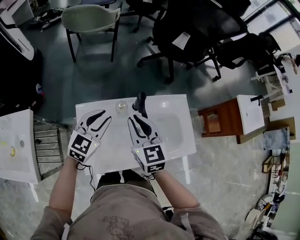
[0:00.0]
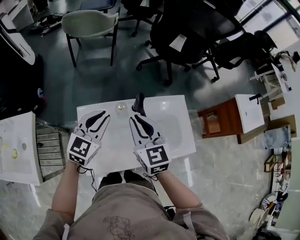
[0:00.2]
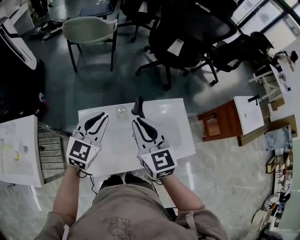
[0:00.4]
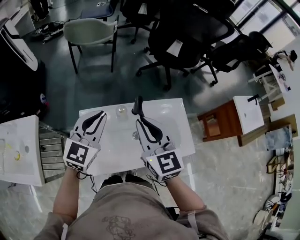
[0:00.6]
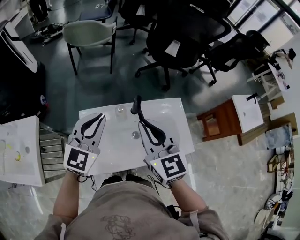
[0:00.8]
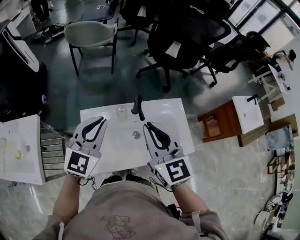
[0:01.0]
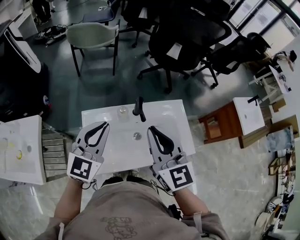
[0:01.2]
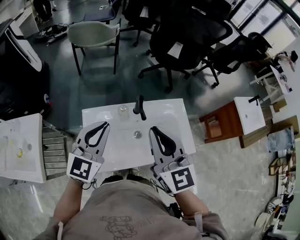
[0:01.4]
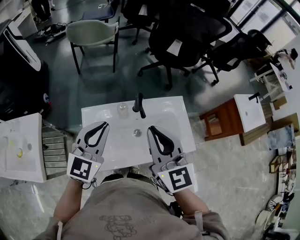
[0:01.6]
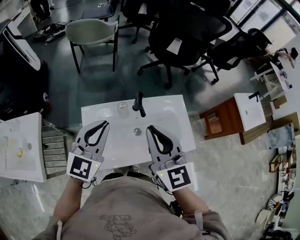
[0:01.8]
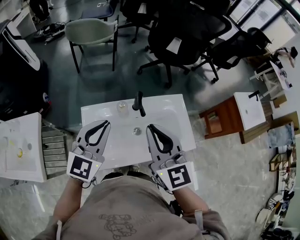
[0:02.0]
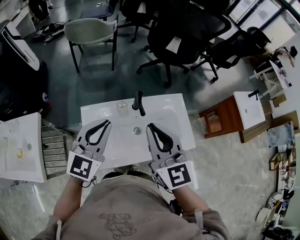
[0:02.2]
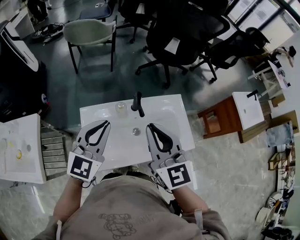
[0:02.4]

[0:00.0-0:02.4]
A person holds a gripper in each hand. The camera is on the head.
0:00.0 to 0:01.2: The right gripper heads upward, backward and to the right, covering approximately 15 cm; the left gripper travels upward and backward by about 15 cm.
0:01.2 to 0:02.4: The grippers stay close to where they were, moving slightly.

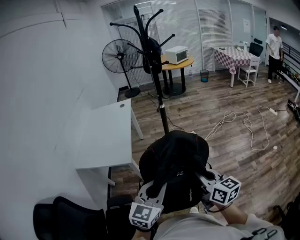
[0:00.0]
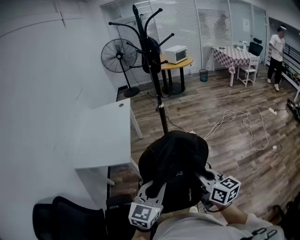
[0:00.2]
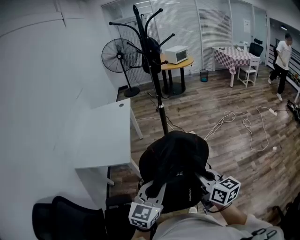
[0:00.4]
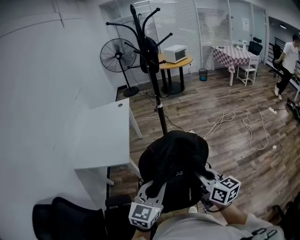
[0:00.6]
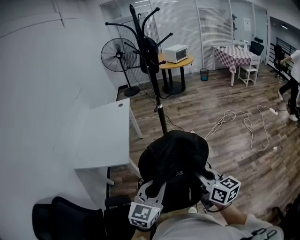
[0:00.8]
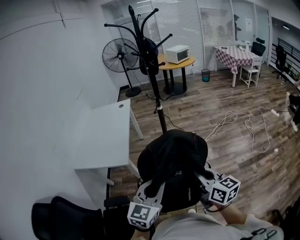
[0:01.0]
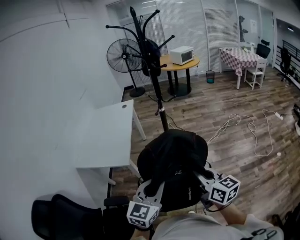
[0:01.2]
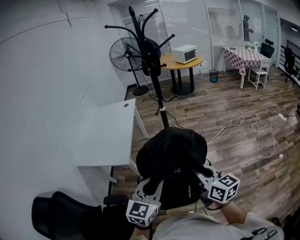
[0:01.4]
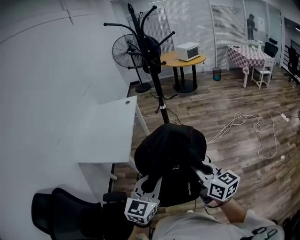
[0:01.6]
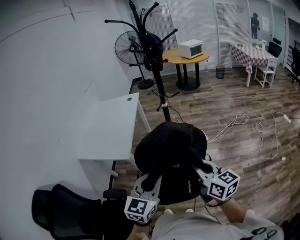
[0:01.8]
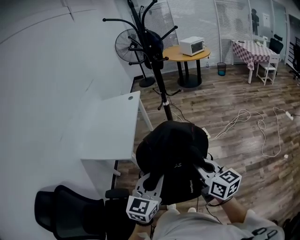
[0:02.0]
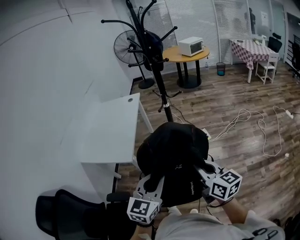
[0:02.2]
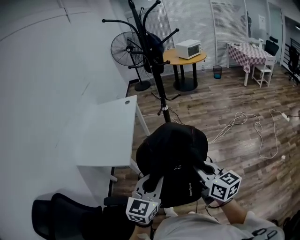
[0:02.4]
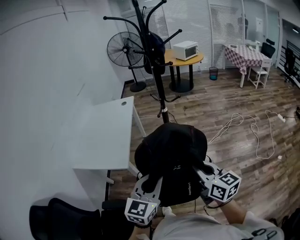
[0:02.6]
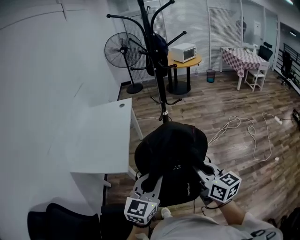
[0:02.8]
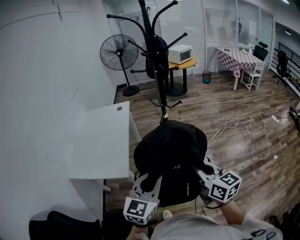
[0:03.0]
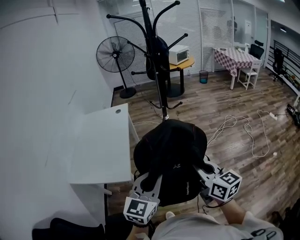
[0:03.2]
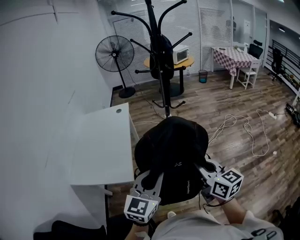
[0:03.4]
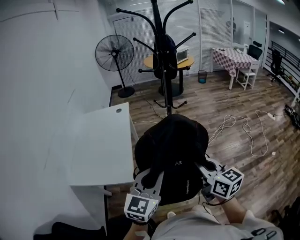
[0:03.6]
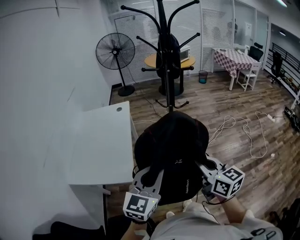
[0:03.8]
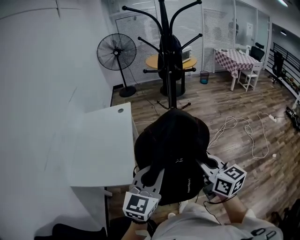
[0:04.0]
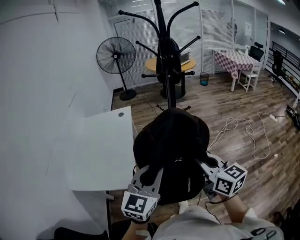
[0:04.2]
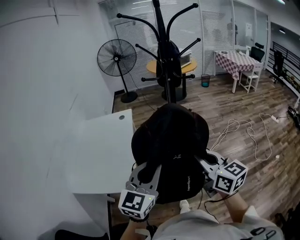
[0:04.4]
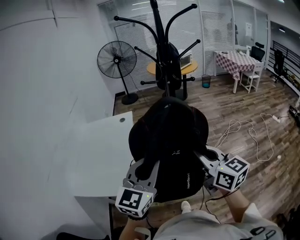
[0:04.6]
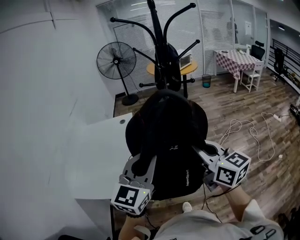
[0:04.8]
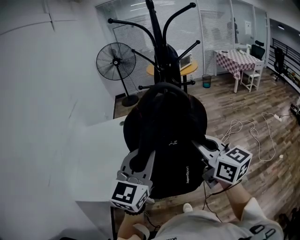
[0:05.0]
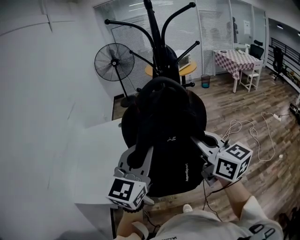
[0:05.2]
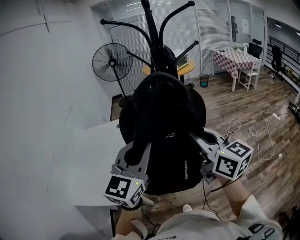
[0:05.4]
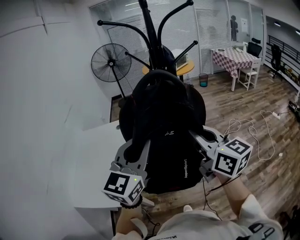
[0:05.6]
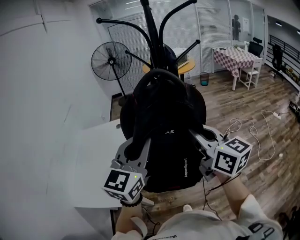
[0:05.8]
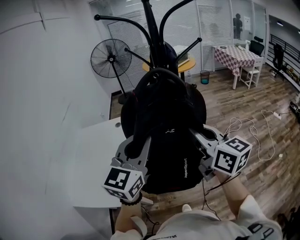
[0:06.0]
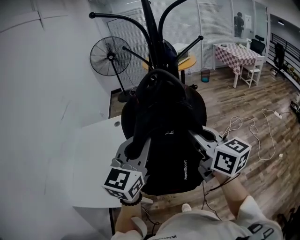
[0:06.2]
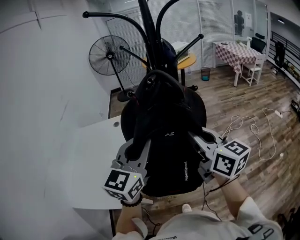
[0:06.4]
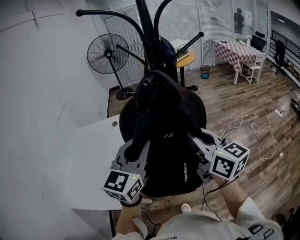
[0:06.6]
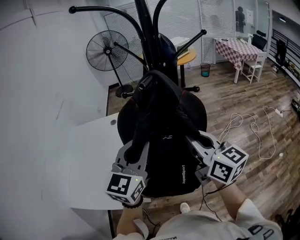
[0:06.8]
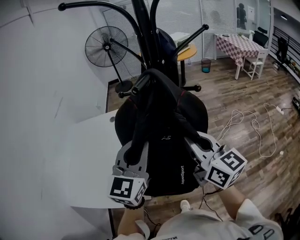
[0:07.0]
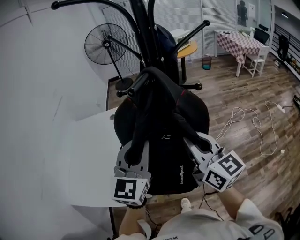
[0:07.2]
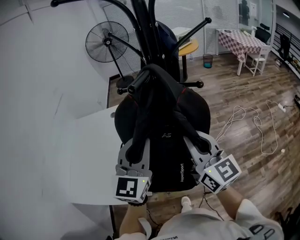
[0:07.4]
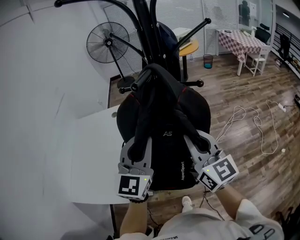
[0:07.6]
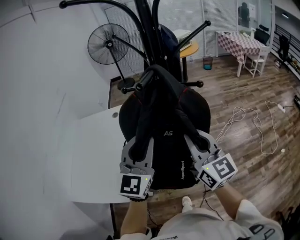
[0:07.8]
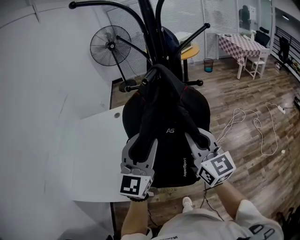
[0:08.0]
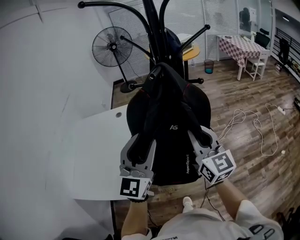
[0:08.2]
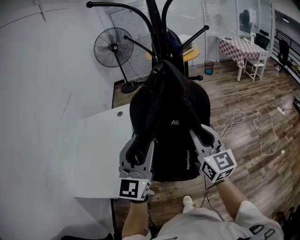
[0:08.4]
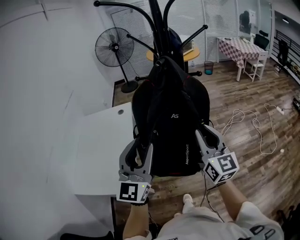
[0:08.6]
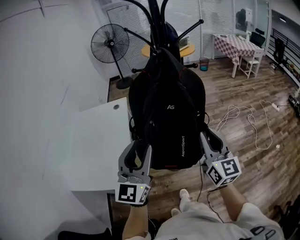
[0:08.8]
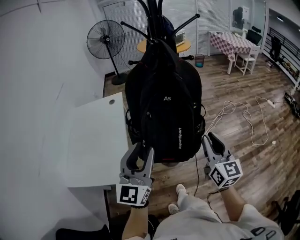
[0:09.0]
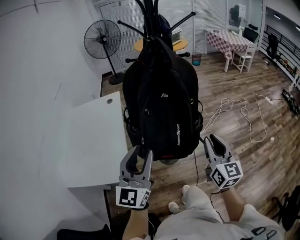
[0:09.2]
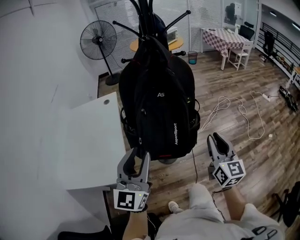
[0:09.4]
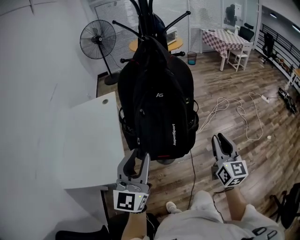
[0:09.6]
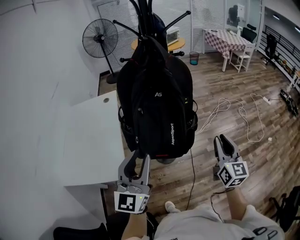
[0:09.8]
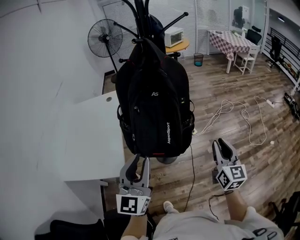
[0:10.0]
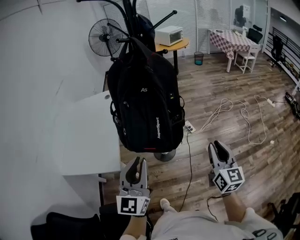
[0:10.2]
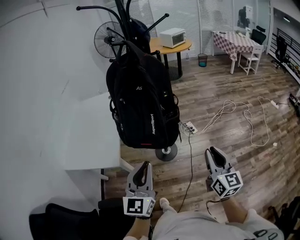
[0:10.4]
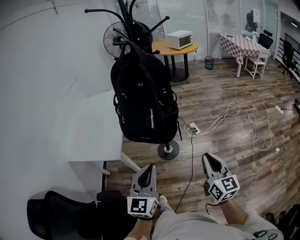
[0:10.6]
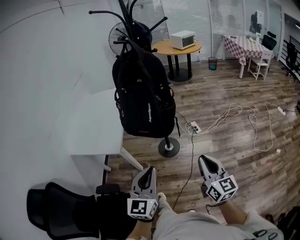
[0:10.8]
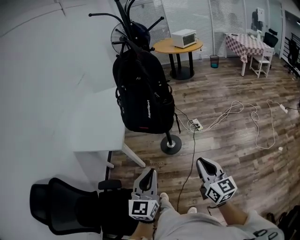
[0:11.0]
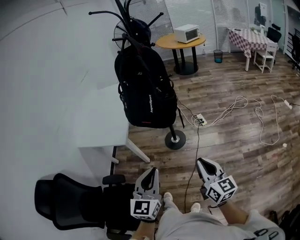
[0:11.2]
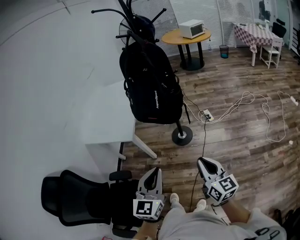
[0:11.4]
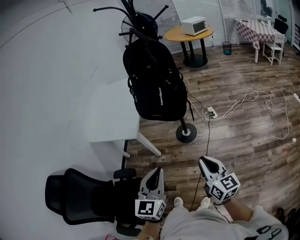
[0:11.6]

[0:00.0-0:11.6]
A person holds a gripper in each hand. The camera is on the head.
0:00.0 to 0:01.4: The left gripper travels to the right and forward by approximately 10 cm, while the right gripper goes some 10 cm forward and to the right.
0:01.4 to 0:02.8: Both grippers move forward, some 10 cm.
0:02.8 to 0:04.4: Both grippers move forward, to the left and upward, about 15 cm.
0:04.4 to 0:05.8: The two grippers go roughly 20 cm forward and upward.
0:05.8 to 0:07.2: The grippers both shift forward and downward by roughly 10 cm.
0:07.2 to 0:08.8: Both grippers travel together backward, about 15 cm. The left gripper opens its fingers. The right gripper changes its angle by some 20 degrees.
0:08.8 to 0:10.2: The right gripper moves to the right, downward and backward, roughly 20 cm. The left gripper moves backward, to the right and downward, about 15 cm, and closes.
0:10.2 to 0:11.6: Both grippers travel together backward, approximately 25 cm. The right gripper rotates about 30 degrees.

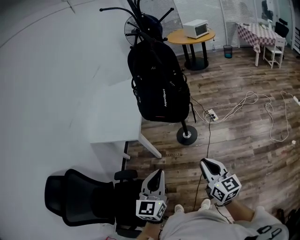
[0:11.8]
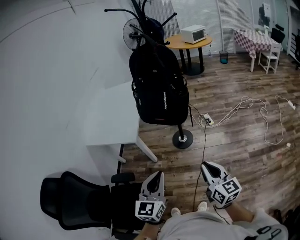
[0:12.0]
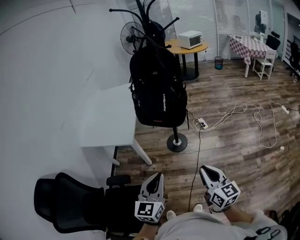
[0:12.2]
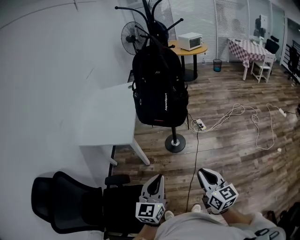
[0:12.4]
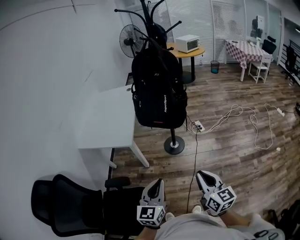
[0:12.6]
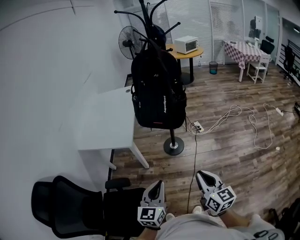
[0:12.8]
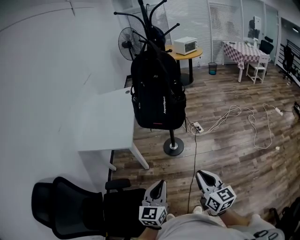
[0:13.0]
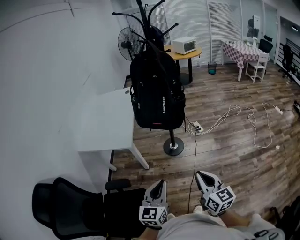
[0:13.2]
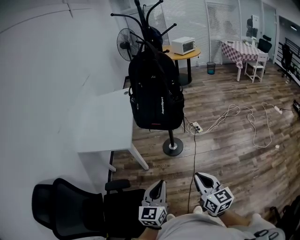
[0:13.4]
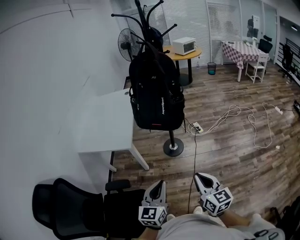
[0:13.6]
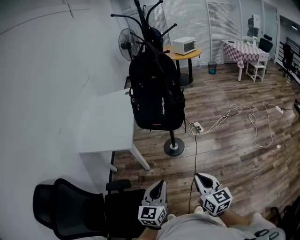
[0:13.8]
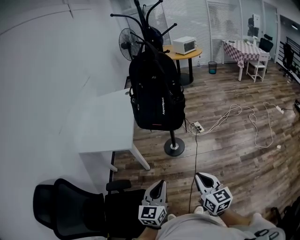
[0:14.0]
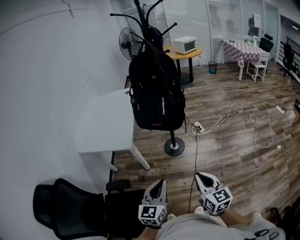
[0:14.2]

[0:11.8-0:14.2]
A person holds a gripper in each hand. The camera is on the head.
0:11.8 to 0:13.0: The right gripper travels to the left and backward by some 10 cm, while the left gripper heads to the left and downward, covering approximately 10 cm.
0:13.0 to 0:14.2: There are only small adjustments of the grippers.

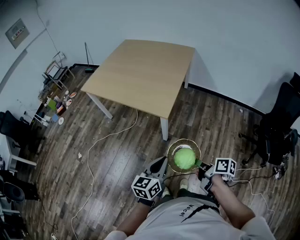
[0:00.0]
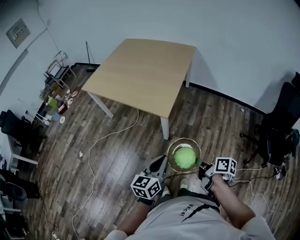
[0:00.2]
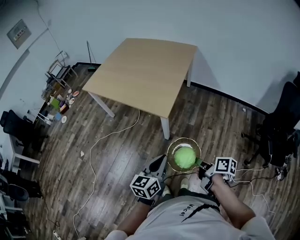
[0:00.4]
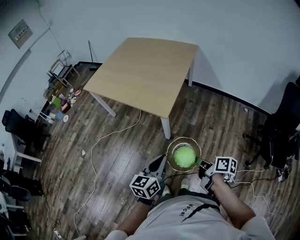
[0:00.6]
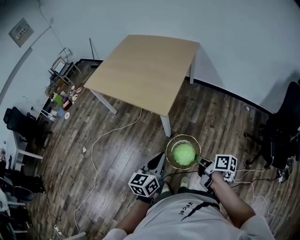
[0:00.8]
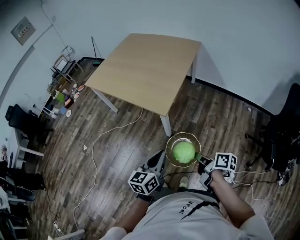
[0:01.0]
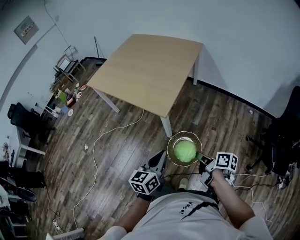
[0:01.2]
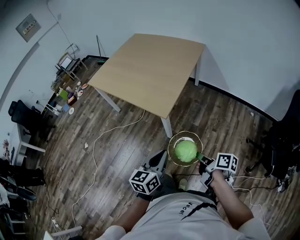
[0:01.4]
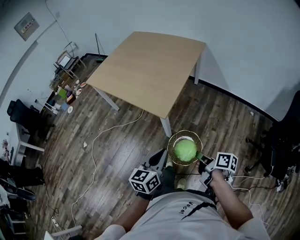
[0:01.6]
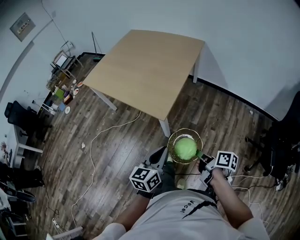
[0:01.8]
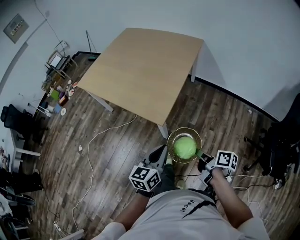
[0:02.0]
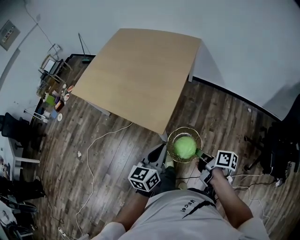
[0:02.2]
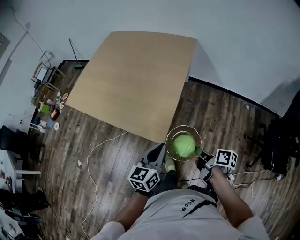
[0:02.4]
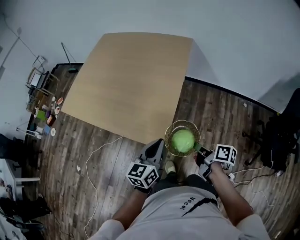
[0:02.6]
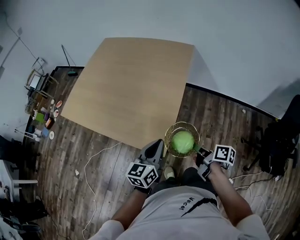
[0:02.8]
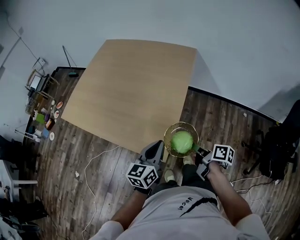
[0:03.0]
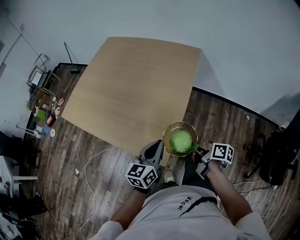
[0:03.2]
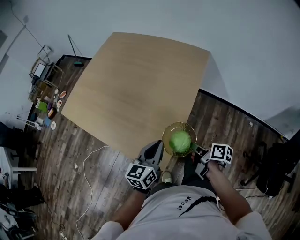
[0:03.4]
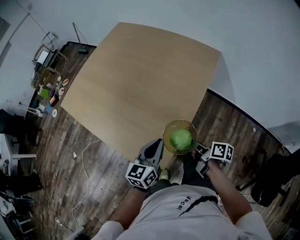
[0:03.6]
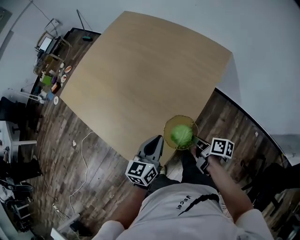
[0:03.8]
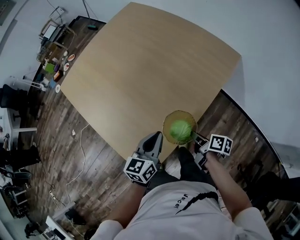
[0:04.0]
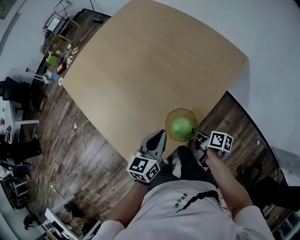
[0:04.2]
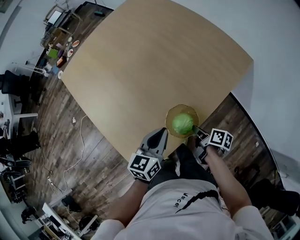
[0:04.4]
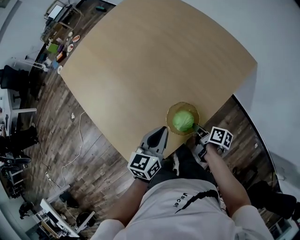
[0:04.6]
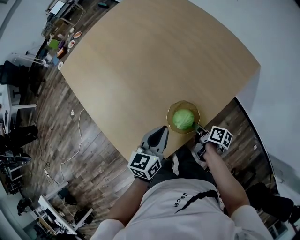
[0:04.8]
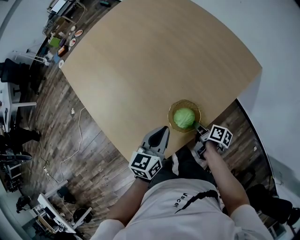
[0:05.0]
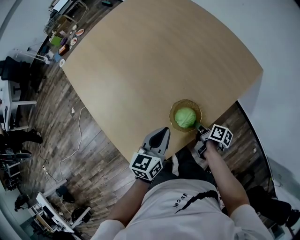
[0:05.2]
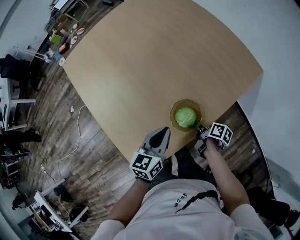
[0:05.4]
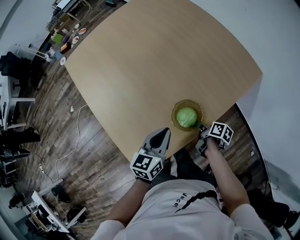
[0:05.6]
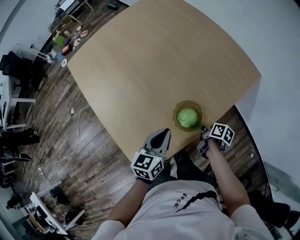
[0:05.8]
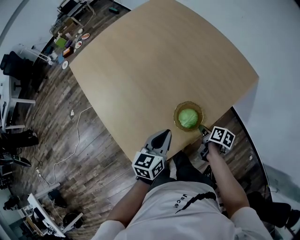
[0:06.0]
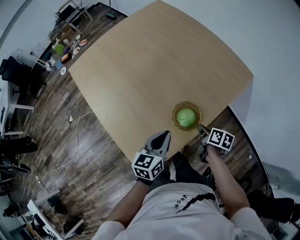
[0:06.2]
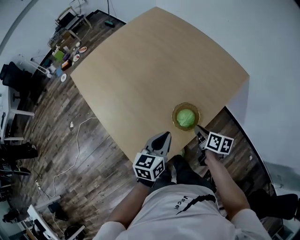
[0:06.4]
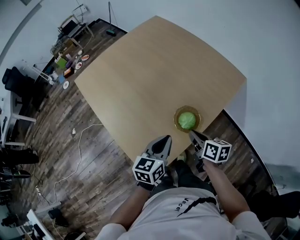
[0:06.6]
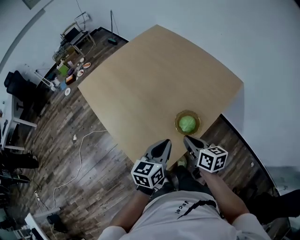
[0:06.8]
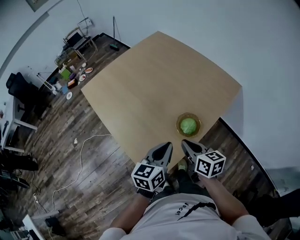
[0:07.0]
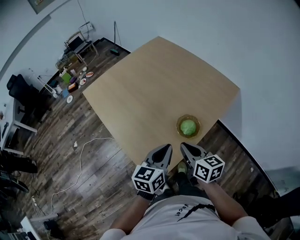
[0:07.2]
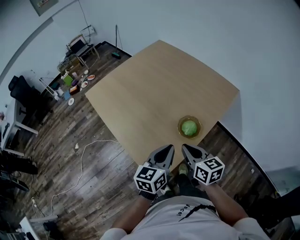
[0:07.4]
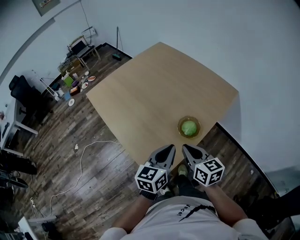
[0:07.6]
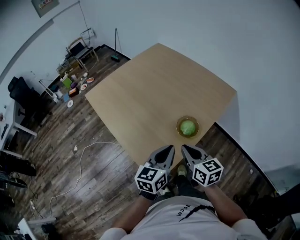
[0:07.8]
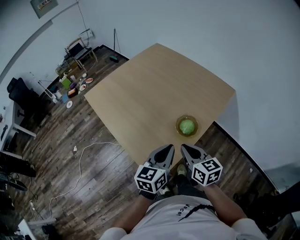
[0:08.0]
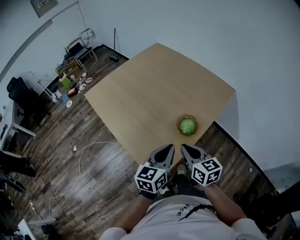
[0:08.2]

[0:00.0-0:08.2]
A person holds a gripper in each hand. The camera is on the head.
0:00.0 to 0:01.6: The left gripper moves roughly 10 cm.
0:01.6 to 0:03.2: The left gripper moves approximately 40 cm.
0:03.2 to 0:05.0: The left gripper shifts by some 25 cm, and swivels some 30 degrees.
0:05.0 to 0:06.6: The left gripper changes place by roughly 10 cm.
0:06.6 to 0:08.2: The left gripper is displaced upward by roughly 10 cm.
